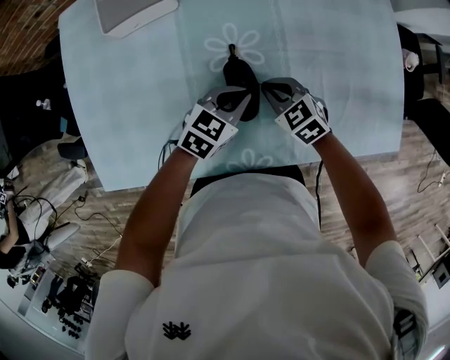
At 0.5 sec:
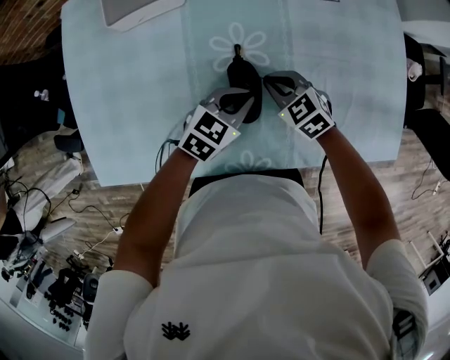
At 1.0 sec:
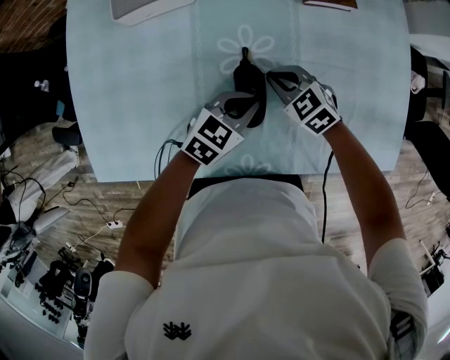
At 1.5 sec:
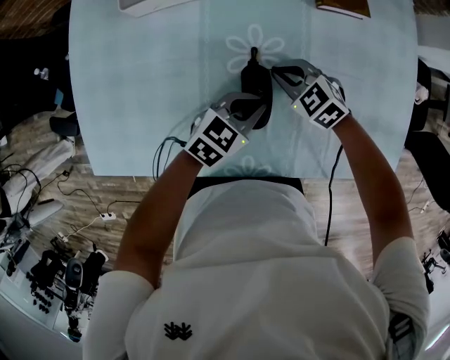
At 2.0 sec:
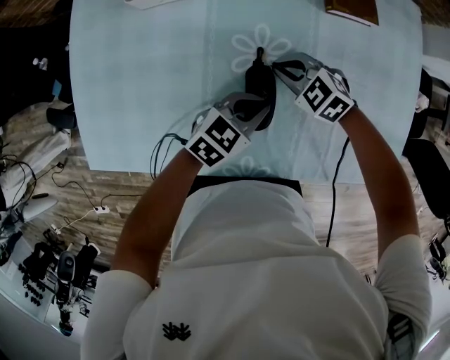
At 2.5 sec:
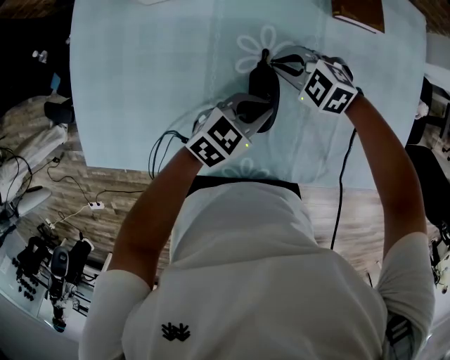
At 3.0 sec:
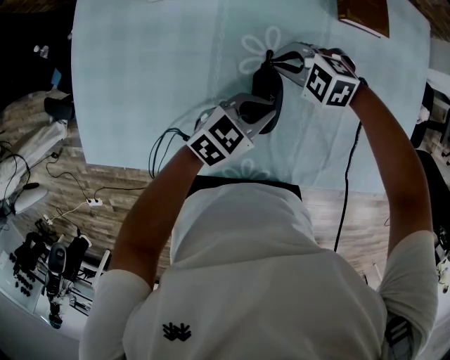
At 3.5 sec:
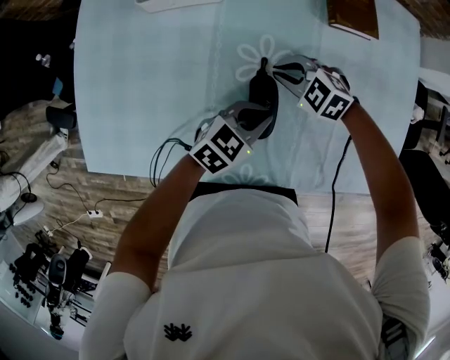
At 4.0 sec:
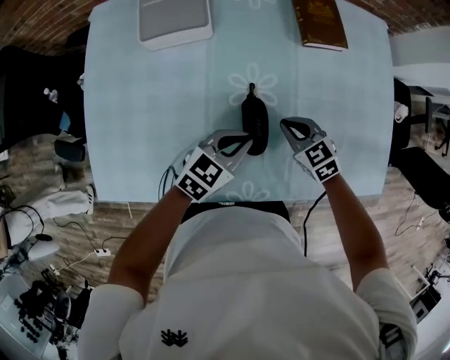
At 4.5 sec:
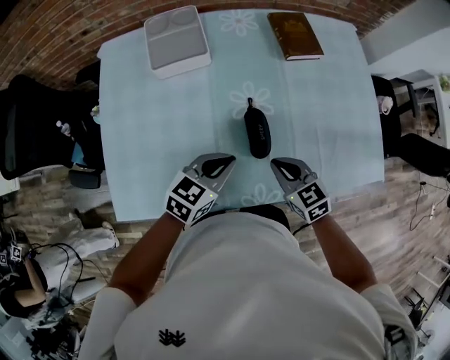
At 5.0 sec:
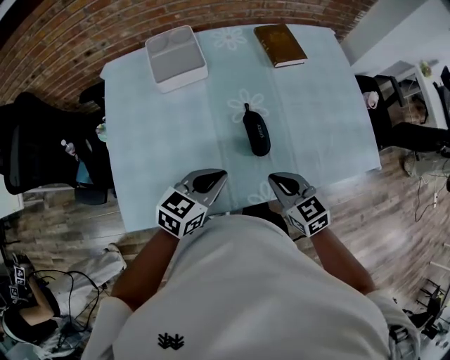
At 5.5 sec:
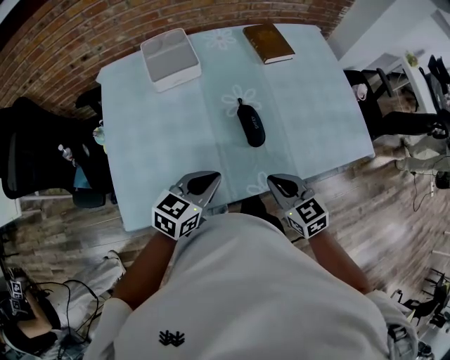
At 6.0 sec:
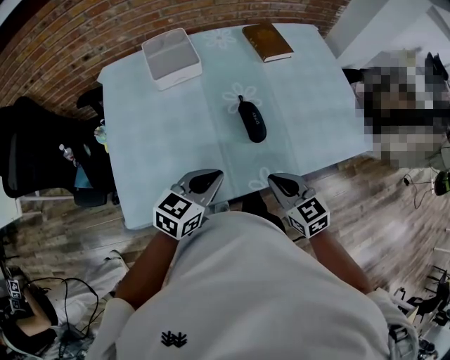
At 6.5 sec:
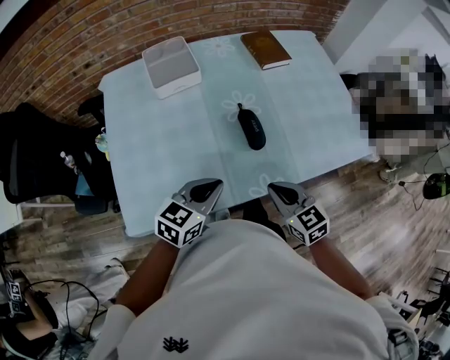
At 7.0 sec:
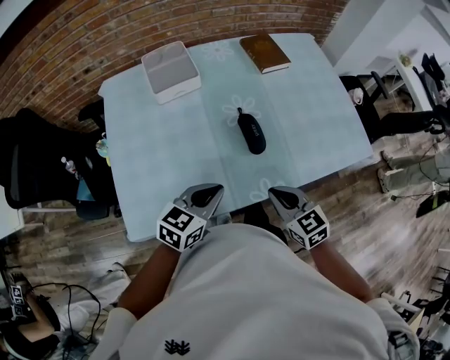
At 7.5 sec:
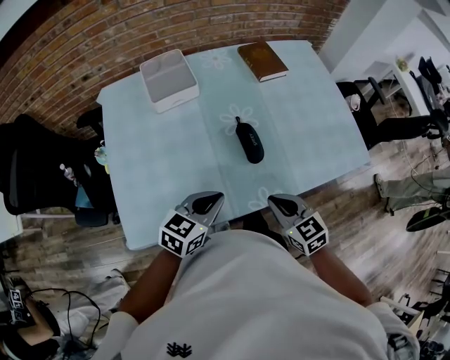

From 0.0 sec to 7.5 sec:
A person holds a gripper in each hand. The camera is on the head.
From 0.0 sec to 2.0 sec: The right gripper changes place by about 10 cm, and swivels about 30 degrees.
From 2.0 sec to 4.0 sec: The right gripper moves about 10 cm, and turns by about 30 degrees. The left gripper ends up roughly 5 cm from where it was.
From 4.0 sec to 5.5 sec: The right gripper goes roughly 25 cm backward and upward, and rotates about 30 degrees, while the left gripper goes about 20 cm backward, to the left and upward.
From 5.5 sec to 7.5 sec: The grippers make only small movements.

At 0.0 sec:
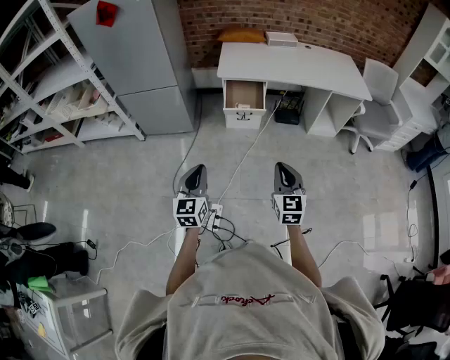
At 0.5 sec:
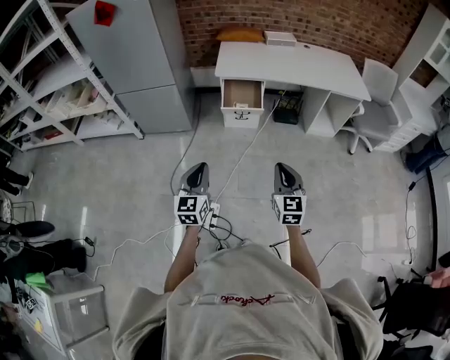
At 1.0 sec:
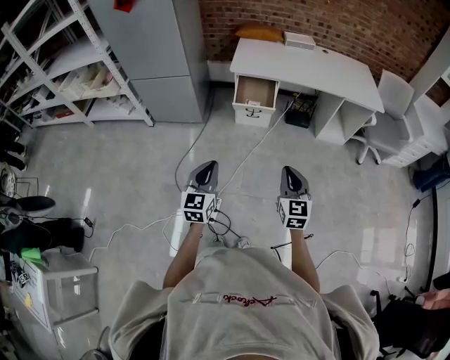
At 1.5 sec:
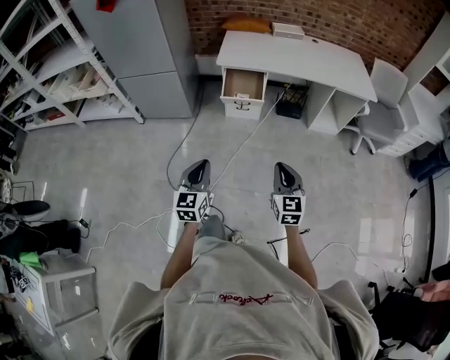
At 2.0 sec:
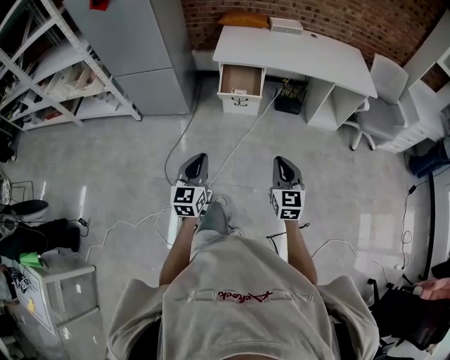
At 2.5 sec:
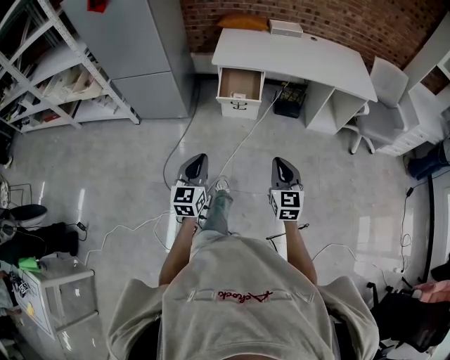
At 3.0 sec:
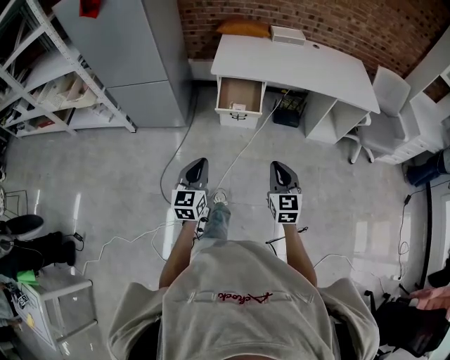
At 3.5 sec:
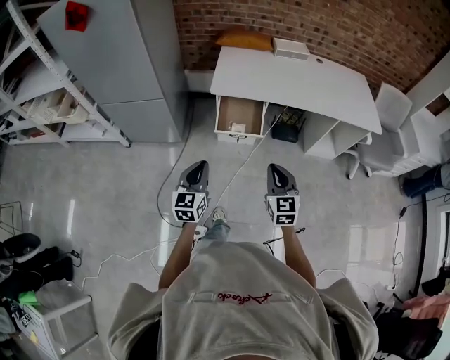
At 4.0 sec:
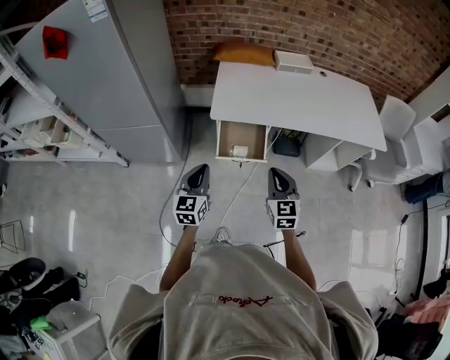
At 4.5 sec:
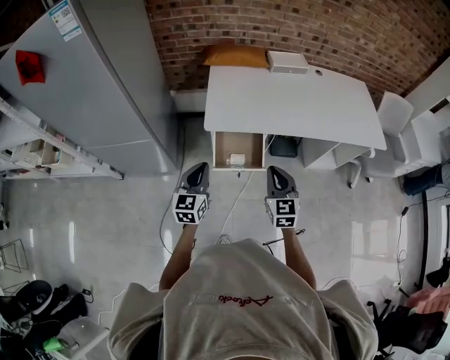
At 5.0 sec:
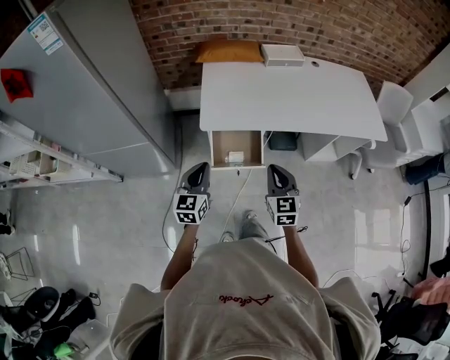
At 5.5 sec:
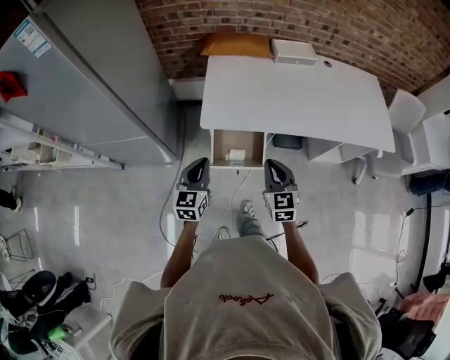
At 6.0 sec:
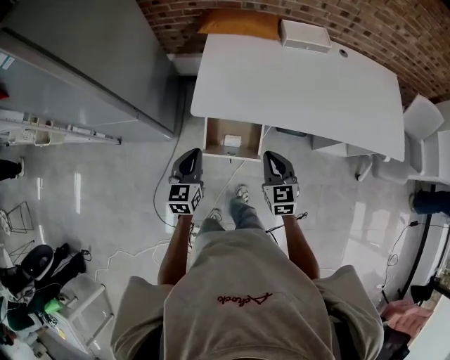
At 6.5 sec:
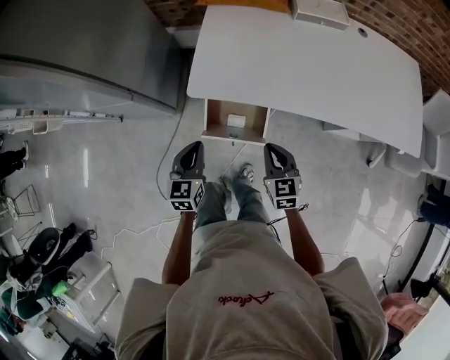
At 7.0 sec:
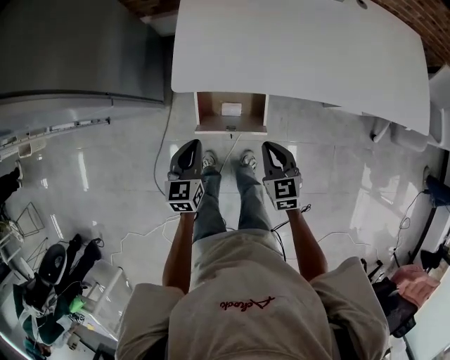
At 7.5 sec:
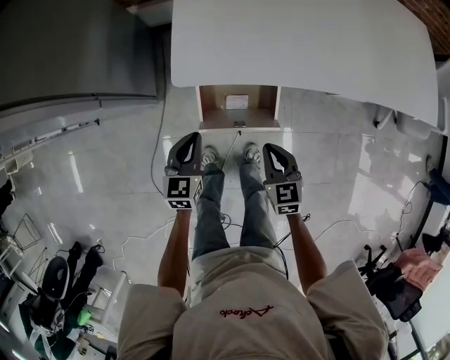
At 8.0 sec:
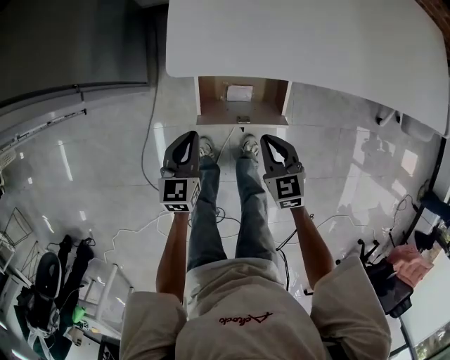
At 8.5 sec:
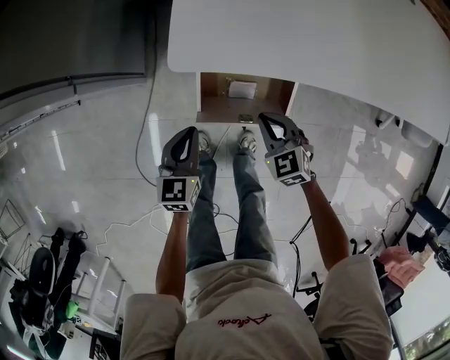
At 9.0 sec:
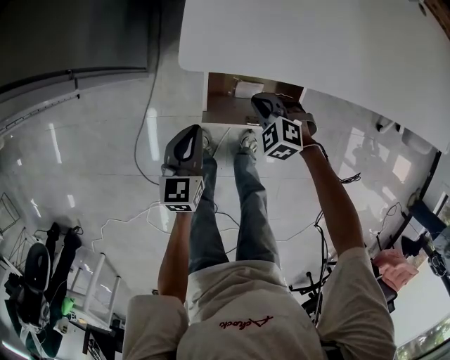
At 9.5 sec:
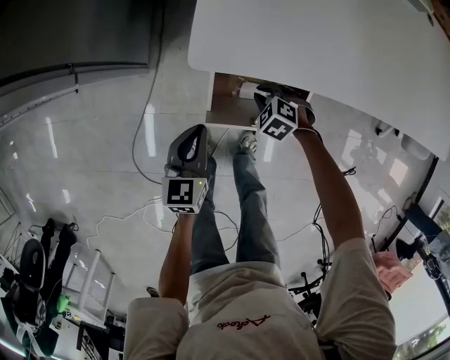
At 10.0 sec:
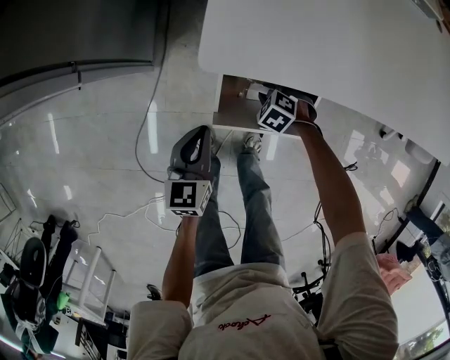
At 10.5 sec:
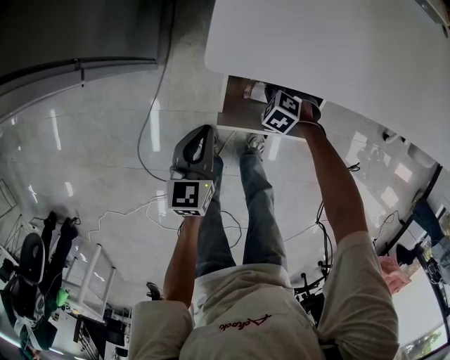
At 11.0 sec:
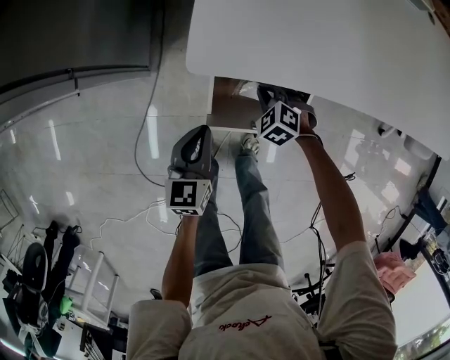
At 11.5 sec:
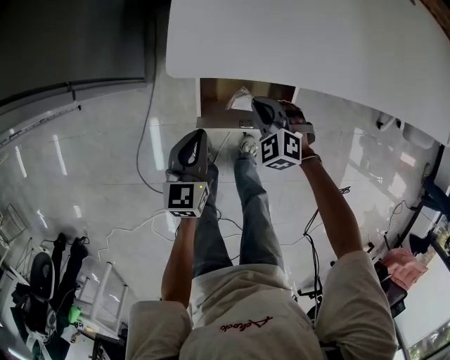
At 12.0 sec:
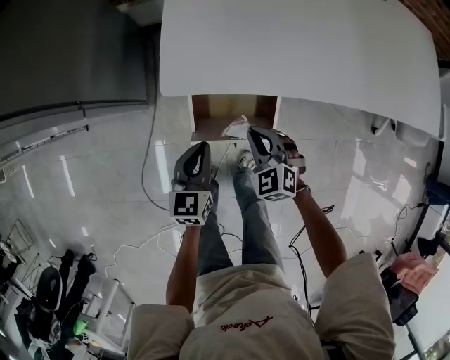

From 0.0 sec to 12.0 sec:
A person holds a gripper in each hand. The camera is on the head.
From 0.0 sec to 2.0 sec: Both grippers move to the right, approximately 10 cm.
From 2.0 sec to 4.0 sec: Both grippers travel together forward, approximately 40 cm.
From 4.0 sec to 6.0 sec: The two grippers go roughly 20 cm forward.
From 6.0 sec to 8.0 sec: The grippers both shift downward by about 25 cm.
From 8.0 sec to 10.0 sec: The right gripper goes approximately 20 cm downward, and tilts its fingers about 40 degrees downward.
From 10.0 sec to 12.0 sec: The left gripper changes place by approximately 10 cm. Meanwhile the right gripper moves upward, roughly 20 cm, and tips its fingers upward by approximately 30 degrees.

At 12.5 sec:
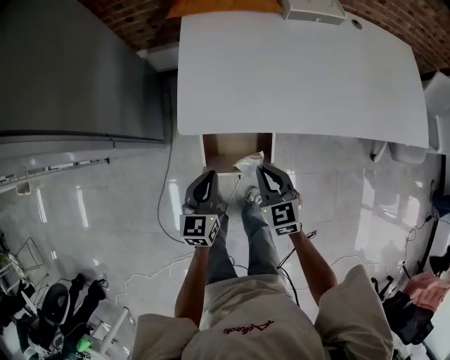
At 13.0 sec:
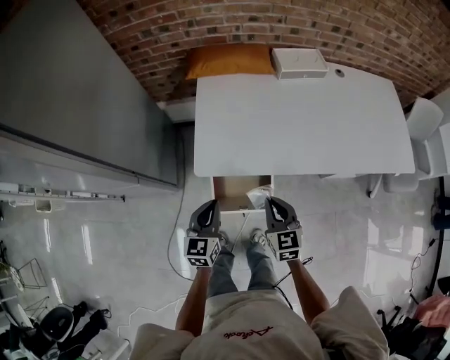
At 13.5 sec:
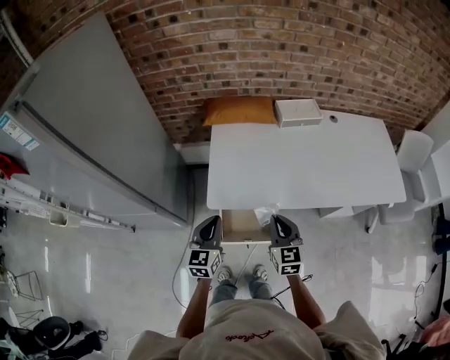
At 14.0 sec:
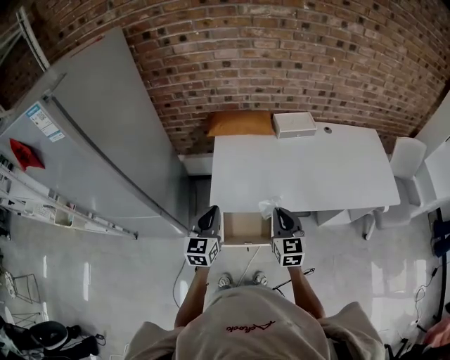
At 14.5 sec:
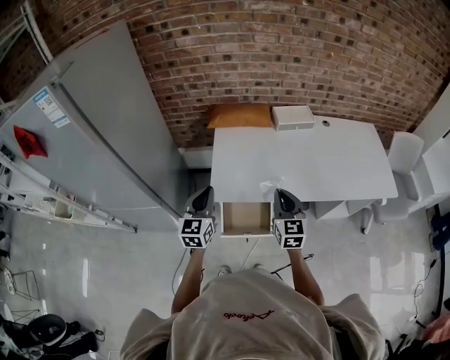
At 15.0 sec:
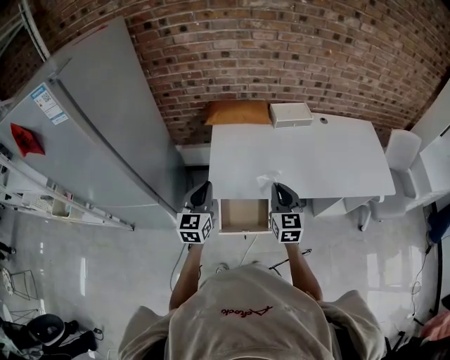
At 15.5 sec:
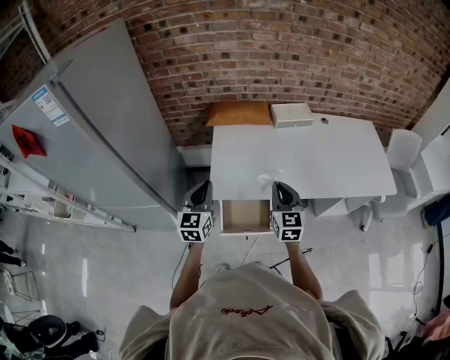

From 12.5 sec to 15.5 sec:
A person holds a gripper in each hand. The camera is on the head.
From 12.5 sec to 14.0 sec: Both grippers move upward, some 25 cm. The right gripper swivels some 20 degrees.
From 14.0 sec to 15.5 sec: The grippers make only small movements.

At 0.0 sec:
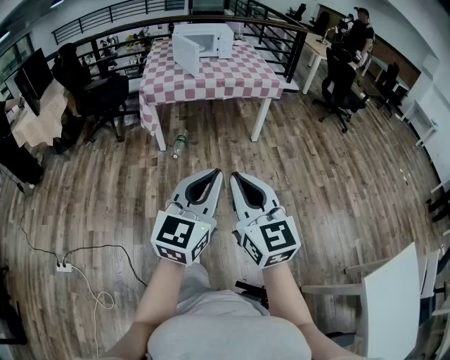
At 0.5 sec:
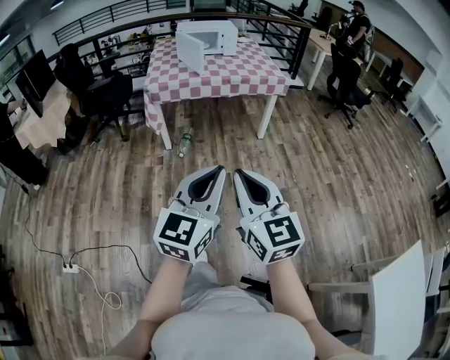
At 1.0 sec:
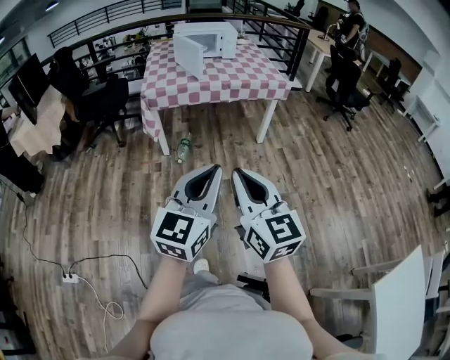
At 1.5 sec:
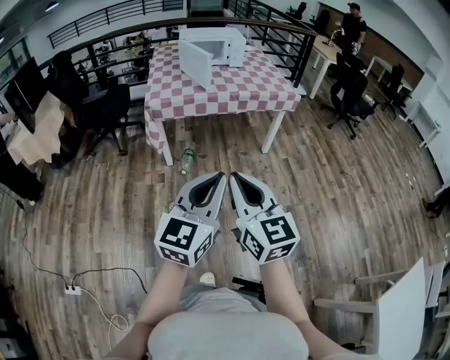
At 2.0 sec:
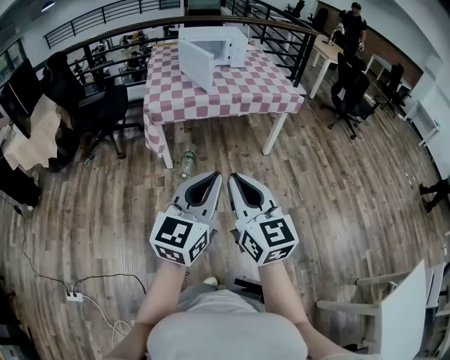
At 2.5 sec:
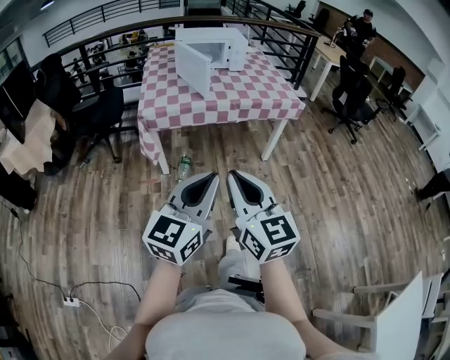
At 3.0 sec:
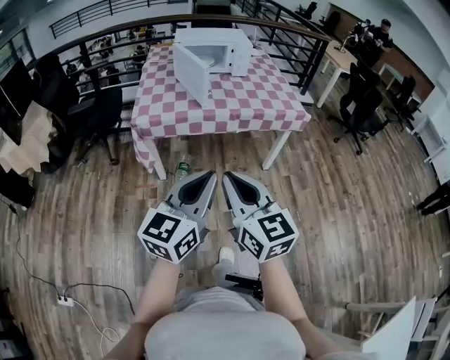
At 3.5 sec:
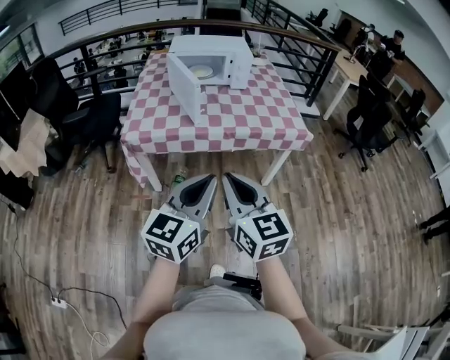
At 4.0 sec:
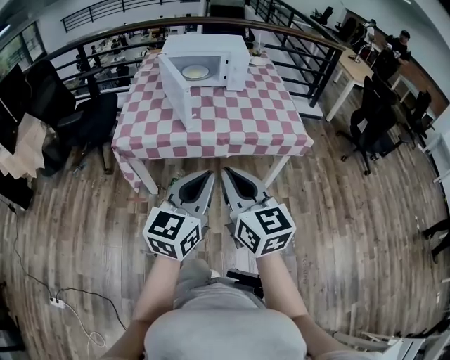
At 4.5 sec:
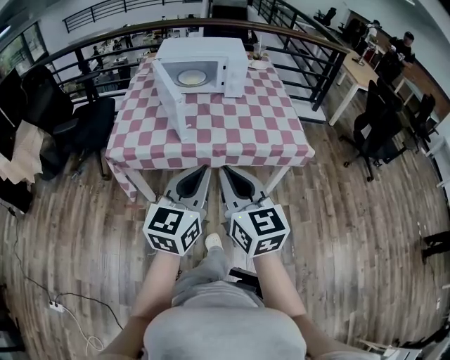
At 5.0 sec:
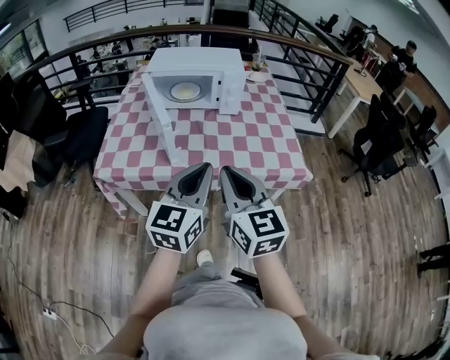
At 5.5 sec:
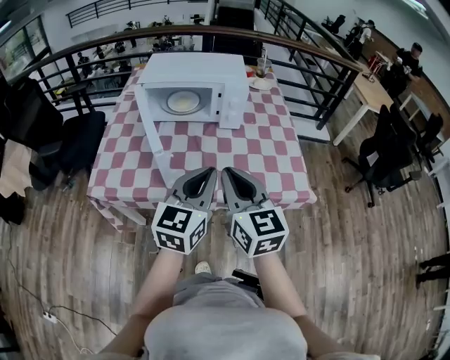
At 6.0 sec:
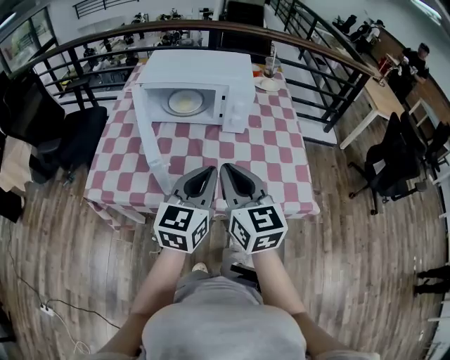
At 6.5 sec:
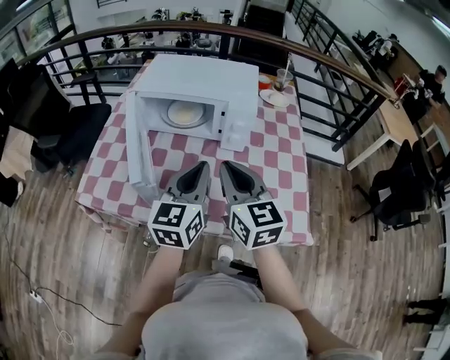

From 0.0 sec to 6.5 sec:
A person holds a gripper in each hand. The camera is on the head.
From 0.0 sec to 2.0 sec: The grippers both shift forward and to the left by about 25 cm.
From 2.0 sec to 4.5 sec: The pair of grippers is taken forward, roughly 50 cm.
From 4.5 sec to 6.5 sec: The two grippers go approximately 40 cm forward.
